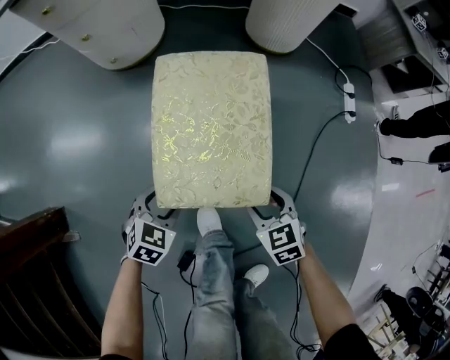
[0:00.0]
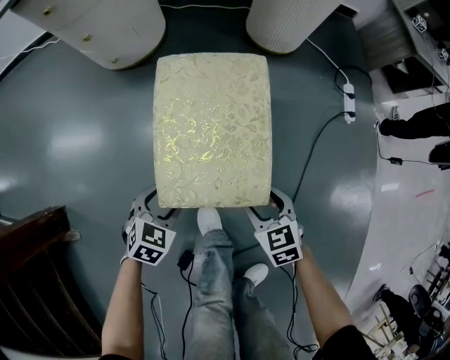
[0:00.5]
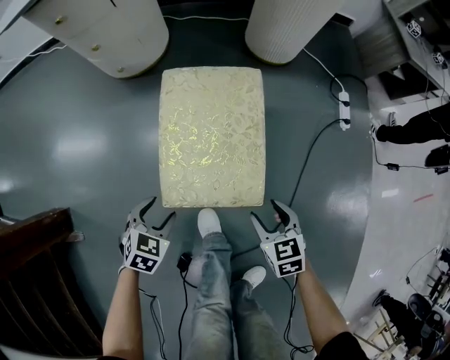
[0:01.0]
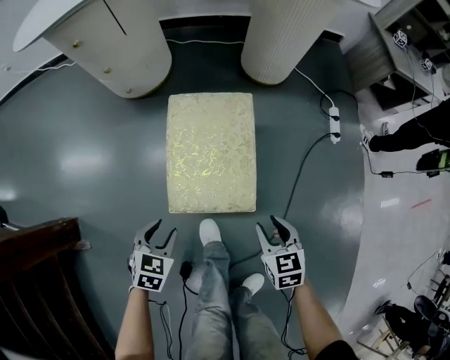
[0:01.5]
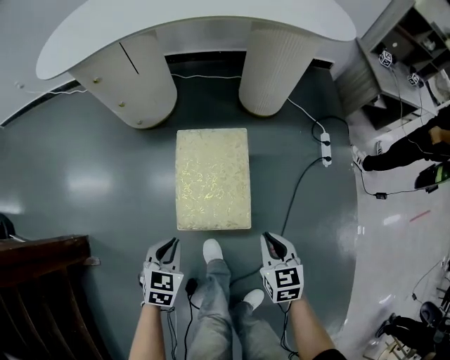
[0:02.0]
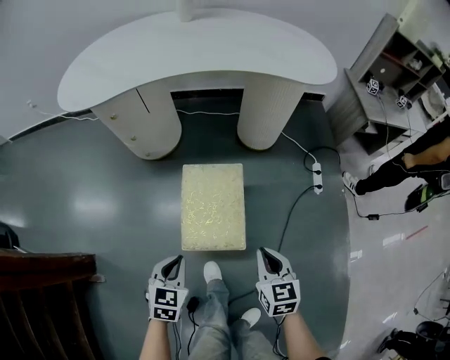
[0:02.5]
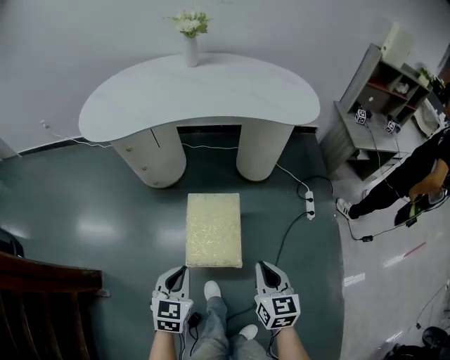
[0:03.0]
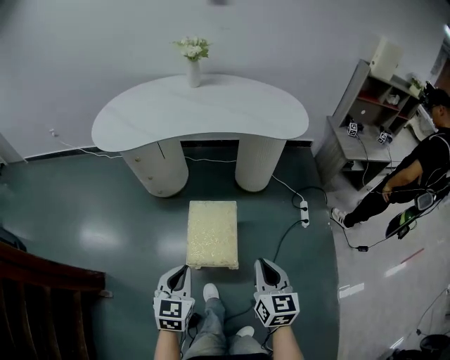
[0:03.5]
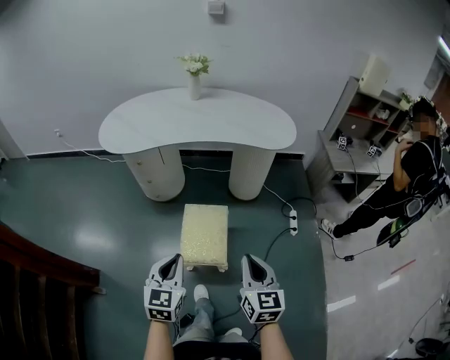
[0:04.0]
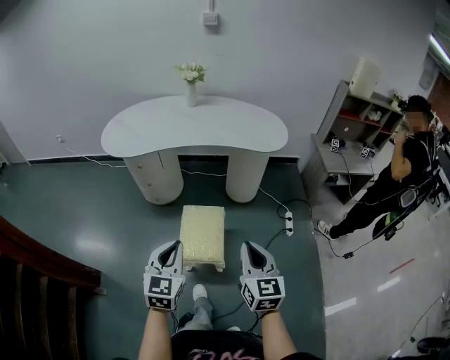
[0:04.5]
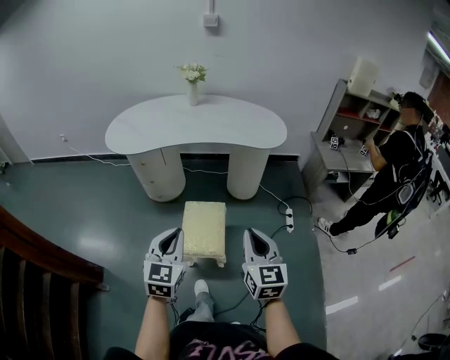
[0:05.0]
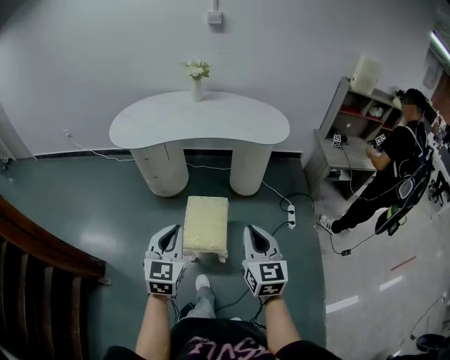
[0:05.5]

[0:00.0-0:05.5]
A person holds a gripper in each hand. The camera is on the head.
0:00.0 to 0:02.0: Both grippers move upward, about 20 cm. The right gripper turns by roughly 20 degrees, and closes. The left gripper closes up.
0:02.0 to 0:03.5: Both grippers travel together upward, approximately 30 cm. The left gripper turns by approximately 20 degrees; the right gripper changes its angle by some 20 degrees.
0:03.5 to 0:05.5: Both grippers travel together upward, about 15 cm.

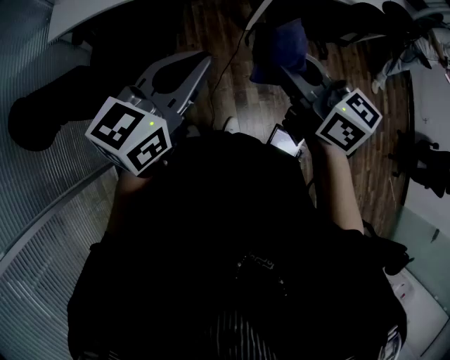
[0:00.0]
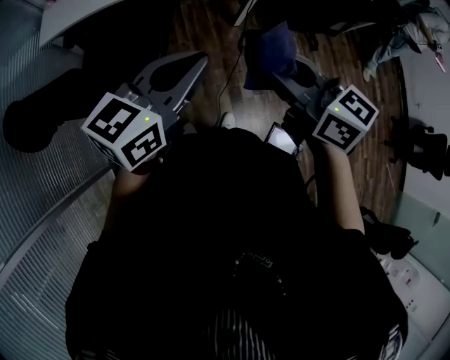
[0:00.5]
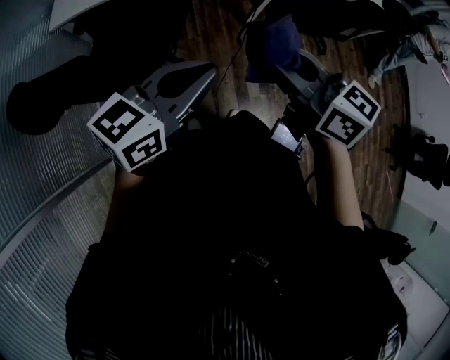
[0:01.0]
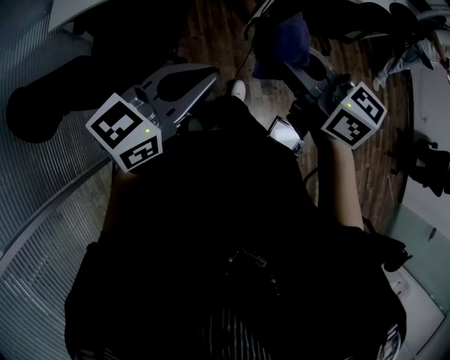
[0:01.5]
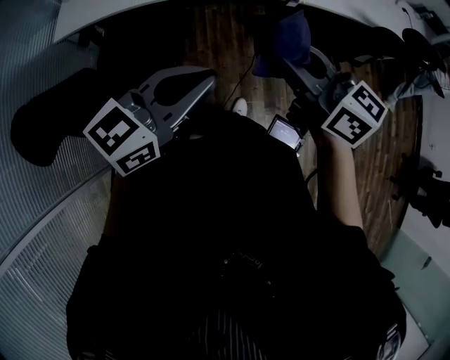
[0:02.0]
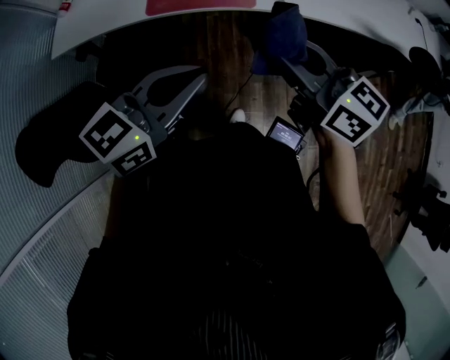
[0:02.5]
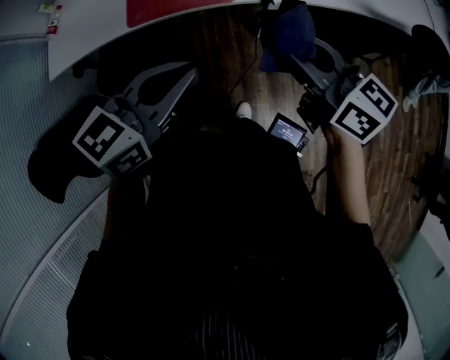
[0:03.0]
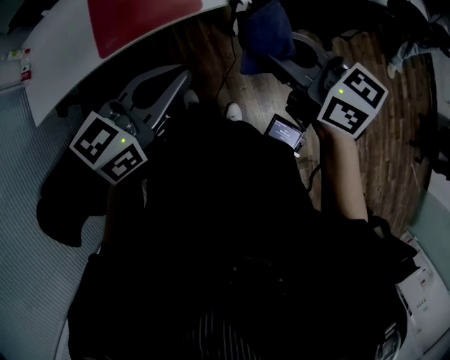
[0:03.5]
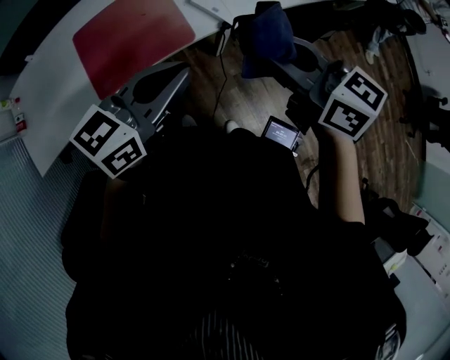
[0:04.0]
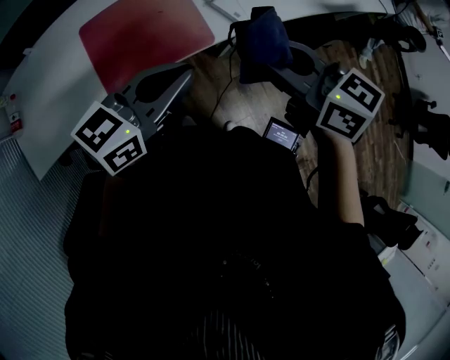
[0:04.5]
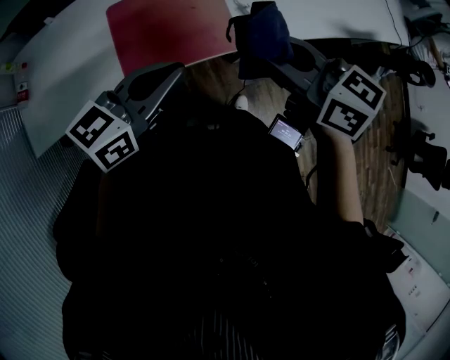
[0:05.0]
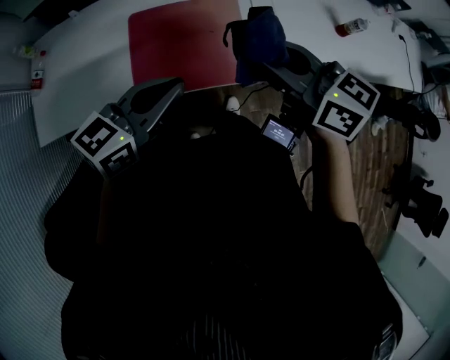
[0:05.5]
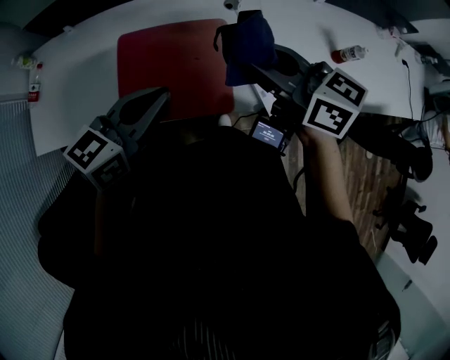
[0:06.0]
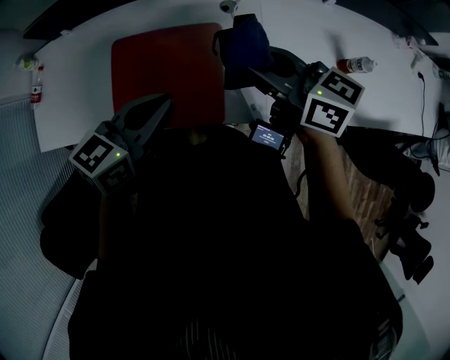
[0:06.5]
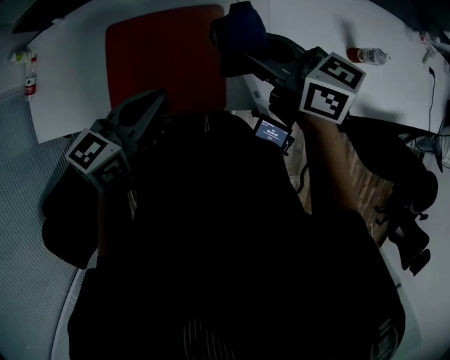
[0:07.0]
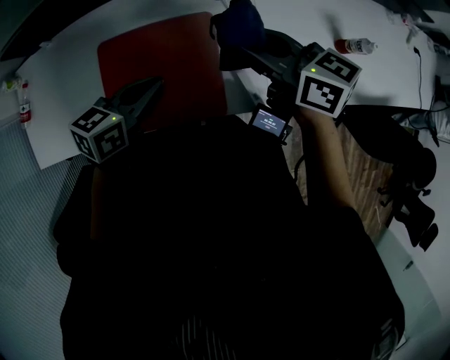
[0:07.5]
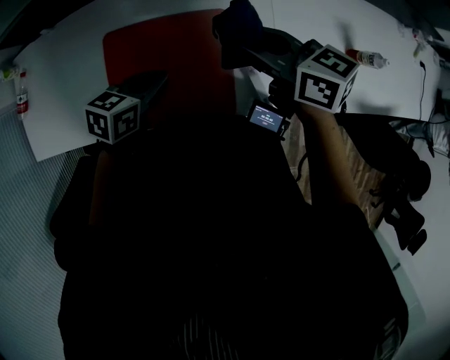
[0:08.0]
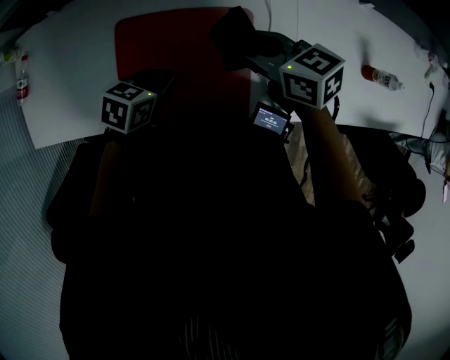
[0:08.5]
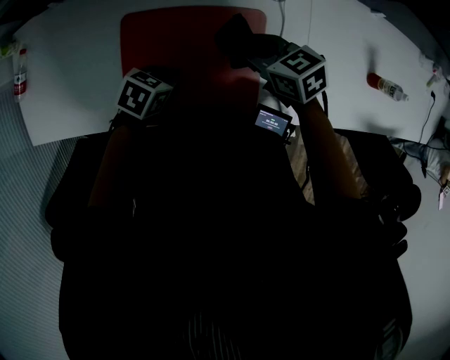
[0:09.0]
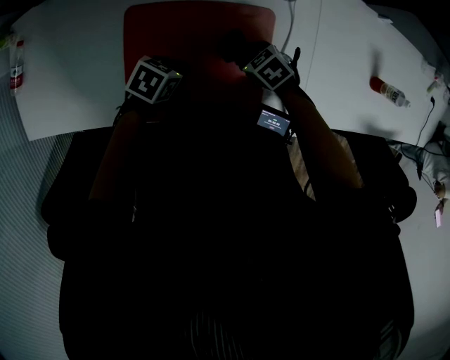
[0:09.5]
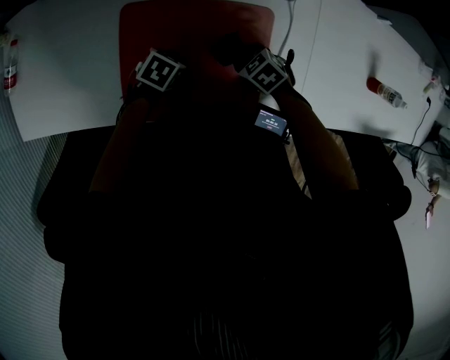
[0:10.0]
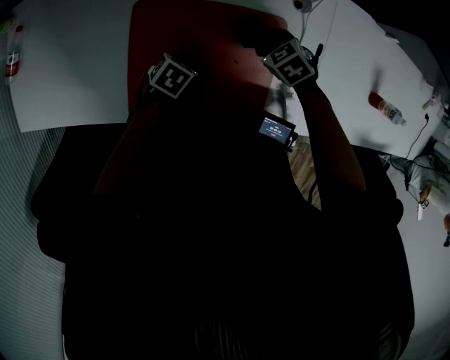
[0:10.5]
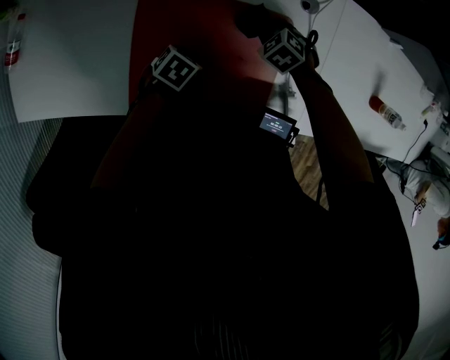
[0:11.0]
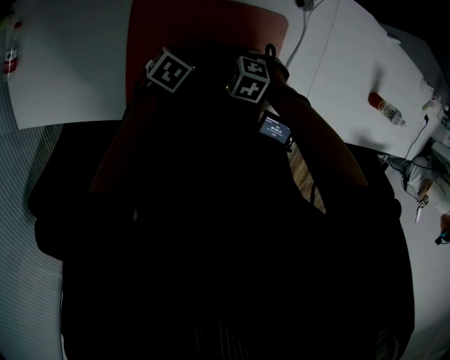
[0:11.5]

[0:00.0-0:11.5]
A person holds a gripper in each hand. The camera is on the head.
0:00.0 to 0:02.0: The left gripper heads forward, covering approximately 5 cm, while the right gripper travels forward by some 10 cm.
0:02.0 to 0:04.0: The left gripper is displaced forward by some 30 cm. The right gripper travels forward and to the right by approximately 25 cm.
0:04.0 to 0:06.0: Both grippers move forward and to the left, some 25 cm. The right gripper swivels some 20 degrees, while the left gripper rotates about 20 degrees.
0:06.0 to 0:07.5: The right gripper moves forward and downward, about 10 cm, while the left gripper heads downward and forward, covering roughly 15 cm.
0:07.5 to 0:09.5: The right gripper is displaced downward by approximately 35 cm, and tilts its fingers about 50 degrees downward, while the left gripper is displaced downward by approximately 20 cm, and rotates approximately 30 degrees.
0:09.5 to 0:11.5: The left gripper shifts approximately 5 cm downward; the right gripper shifts by roughly 10 cm, and swivels roughly 30 degrees.

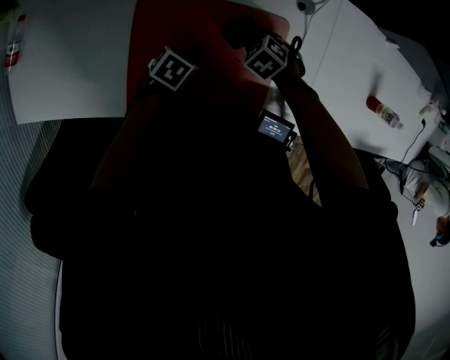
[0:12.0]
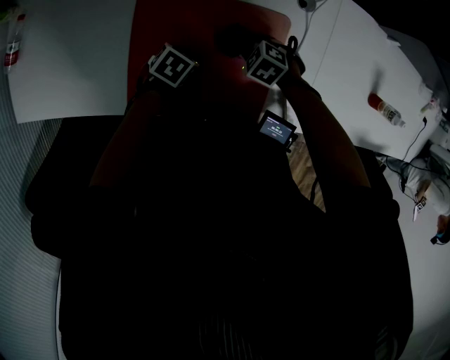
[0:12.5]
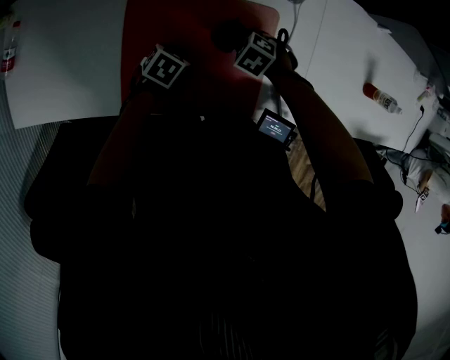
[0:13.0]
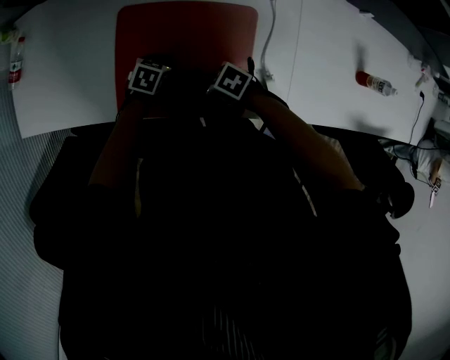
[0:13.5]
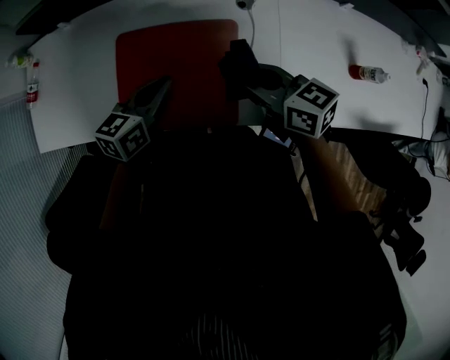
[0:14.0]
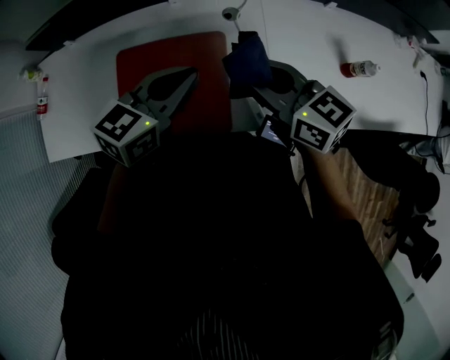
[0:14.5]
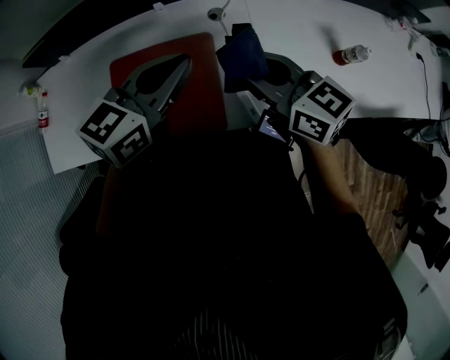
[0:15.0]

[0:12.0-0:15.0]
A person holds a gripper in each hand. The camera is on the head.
0:12.0 to 0:13.5: The right gripper shifts by roughly 20 cm, and turns by roughly 30 degrees.
0:13.5 to 0:15.0: Both grippers move upward, approximately 35 cm. The left gripper angles its fingers upward, by roughly 50 degrees. The right gripper angles its fingers upward, by some 40 degrees.

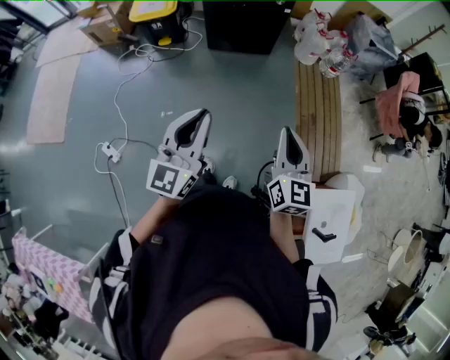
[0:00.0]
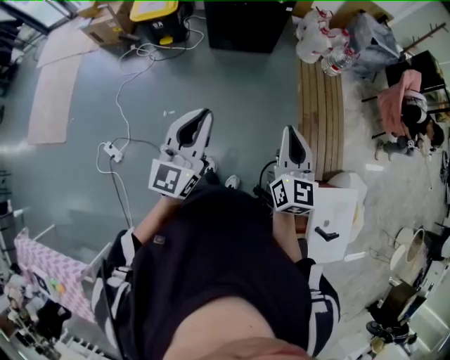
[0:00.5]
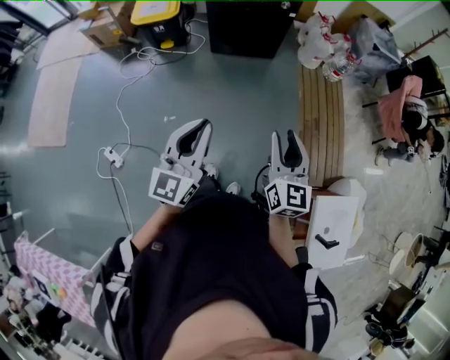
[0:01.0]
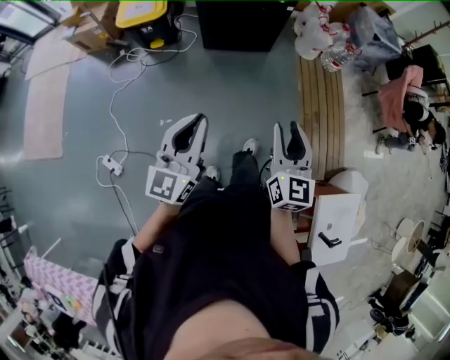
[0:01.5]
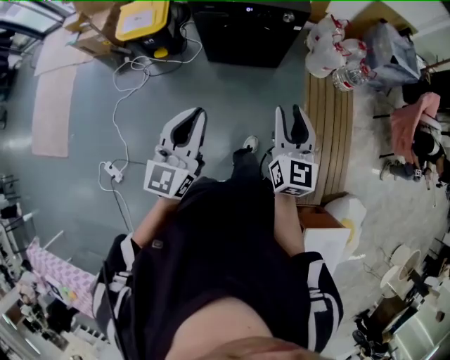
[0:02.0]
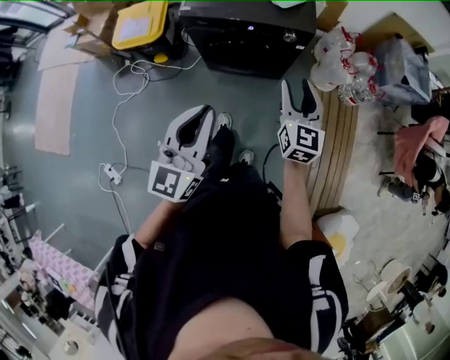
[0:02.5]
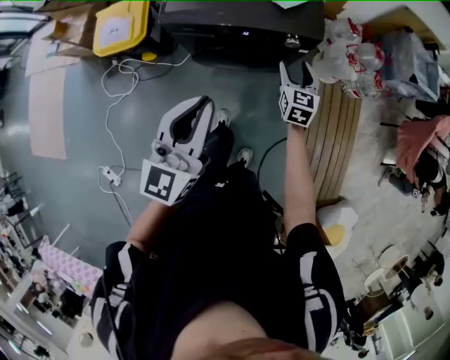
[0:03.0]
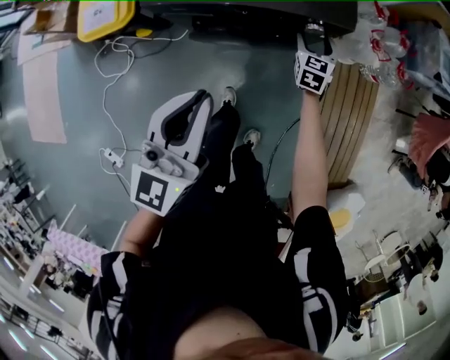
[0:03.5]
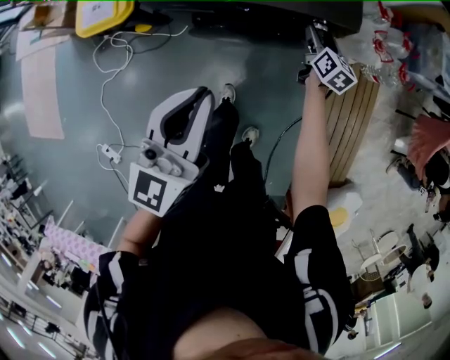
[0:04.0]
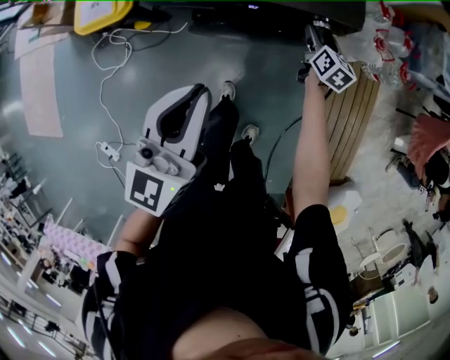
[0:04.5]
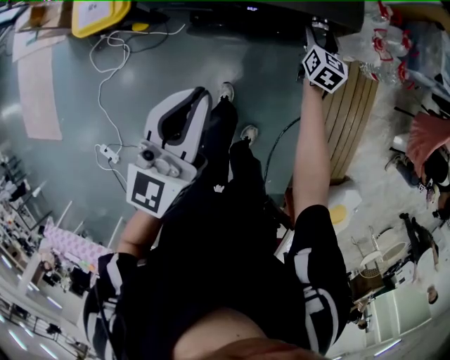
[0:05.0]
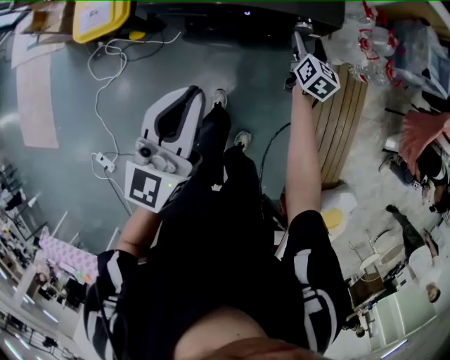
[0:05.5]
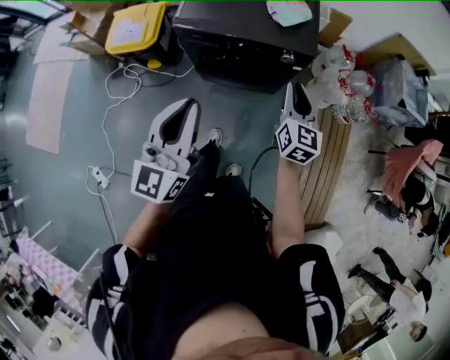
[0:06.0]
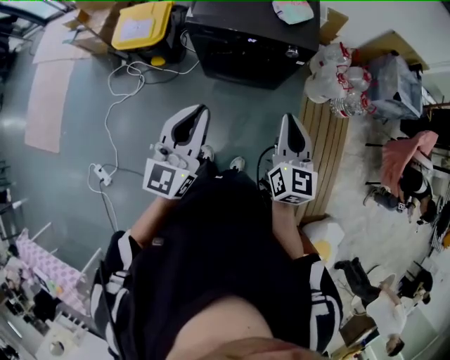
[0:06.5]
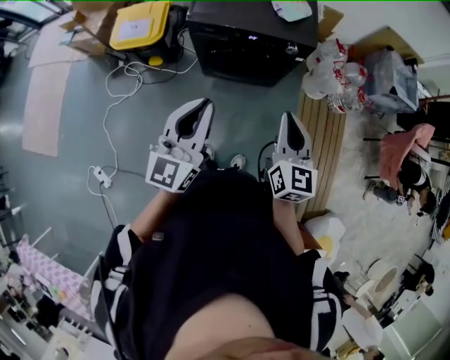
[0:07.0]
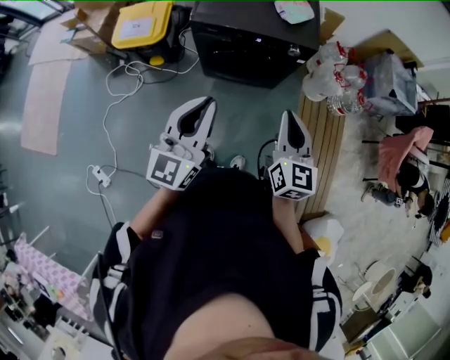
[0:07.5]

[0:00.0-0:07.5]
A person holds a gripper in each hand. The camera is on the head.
0:00.0 to 0:02.0: Both grippers move forward, some 25 cm. The right gripper opens up.
0:02.0 to 0:04.0: The right gripper shifts some 50 cm forward and downward, swivels roughly 30 degrees, and opens. The left gripper travels forward by some 25 cm.
0:05.5 to 0:07.5: The left gripper heads backward and upward, covering about 10 cm. Meanwhile the right gripper goes some 40 cm backward and upward, rotates roughly 20 degrees, and closes up.
